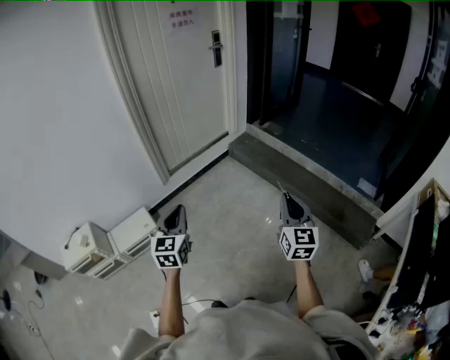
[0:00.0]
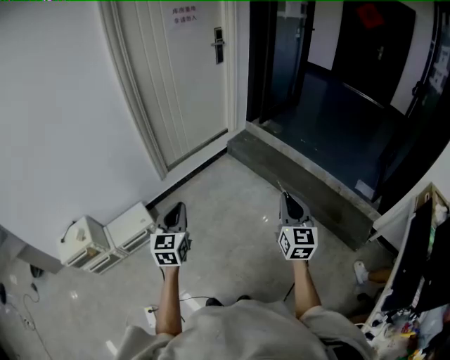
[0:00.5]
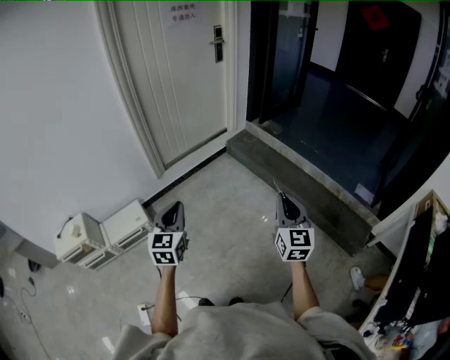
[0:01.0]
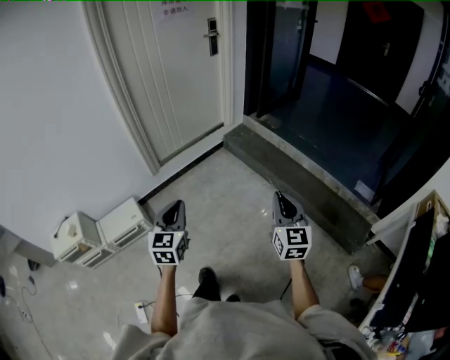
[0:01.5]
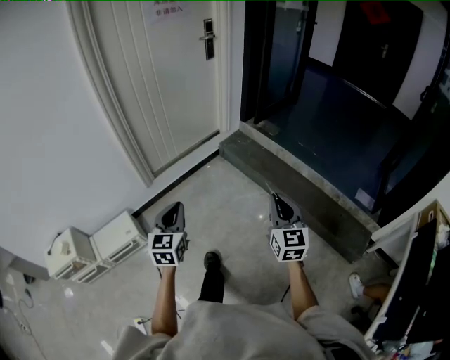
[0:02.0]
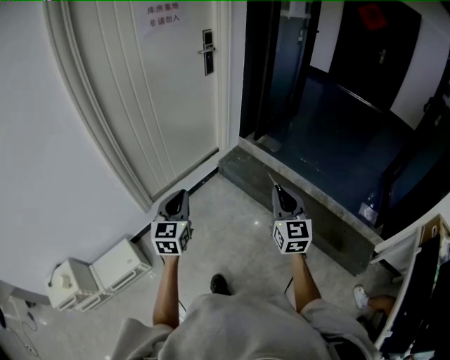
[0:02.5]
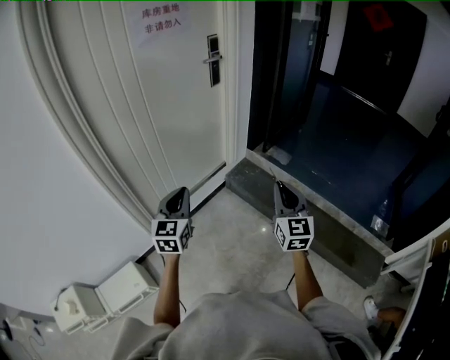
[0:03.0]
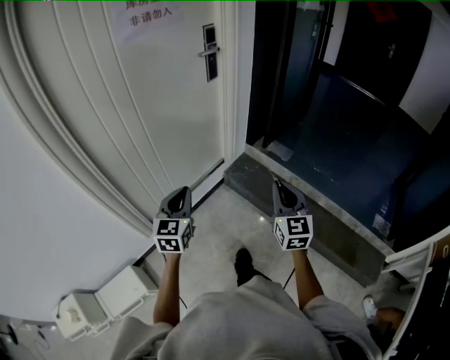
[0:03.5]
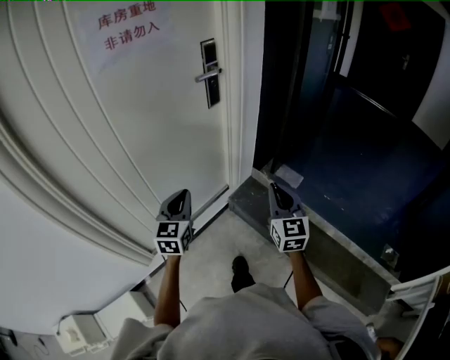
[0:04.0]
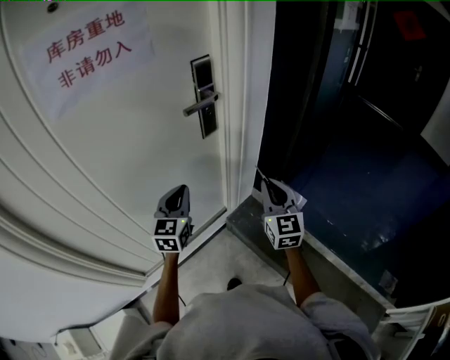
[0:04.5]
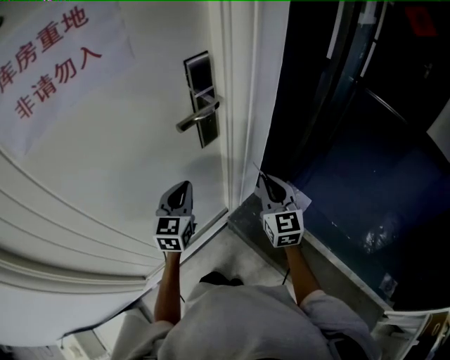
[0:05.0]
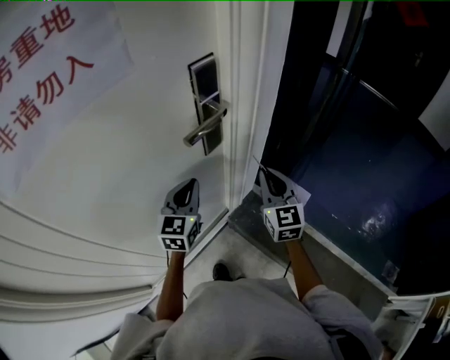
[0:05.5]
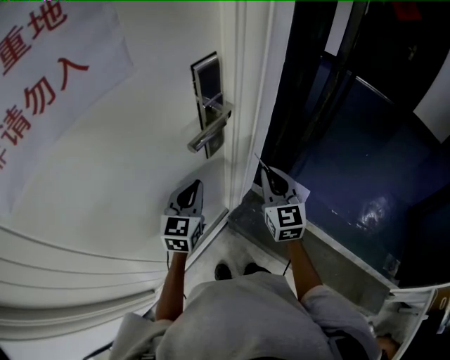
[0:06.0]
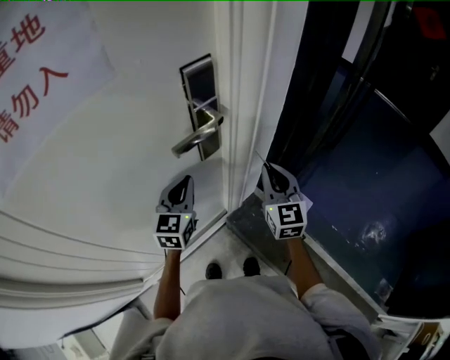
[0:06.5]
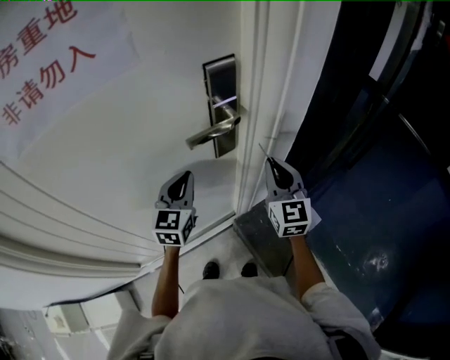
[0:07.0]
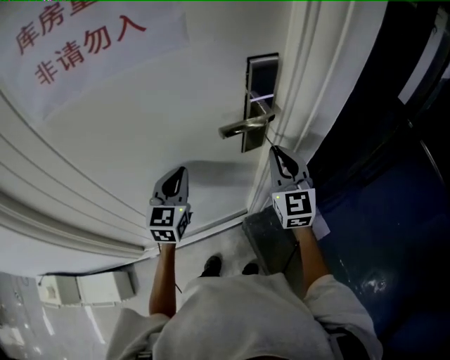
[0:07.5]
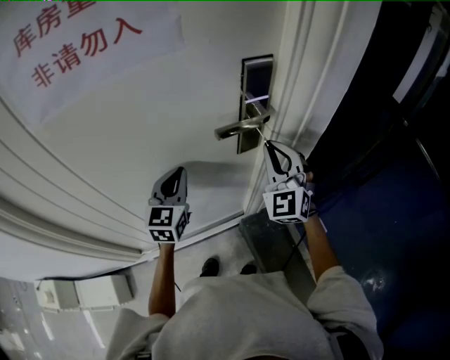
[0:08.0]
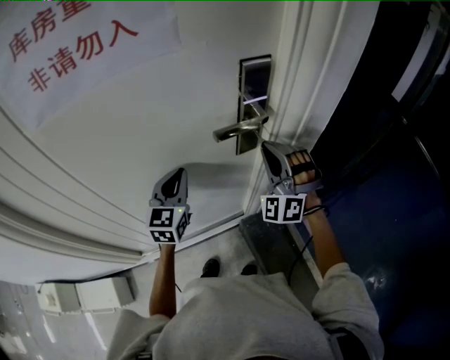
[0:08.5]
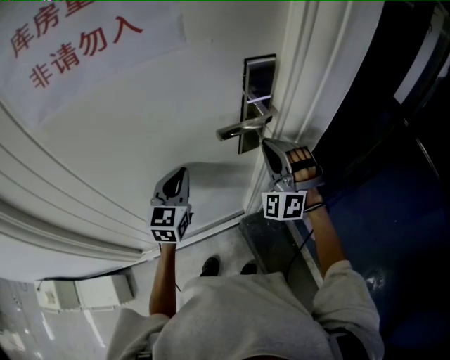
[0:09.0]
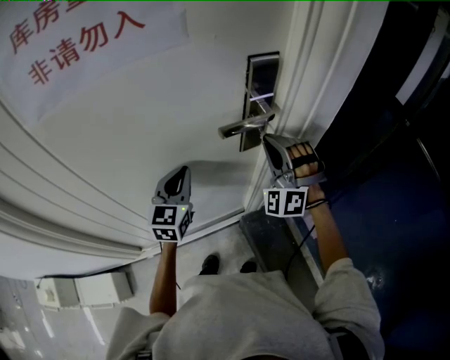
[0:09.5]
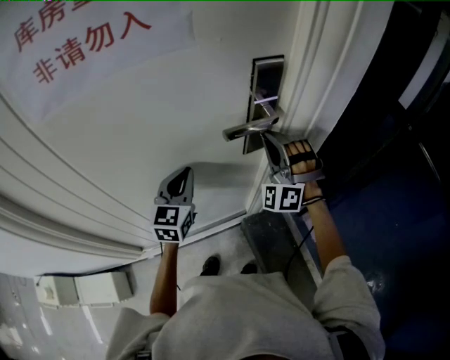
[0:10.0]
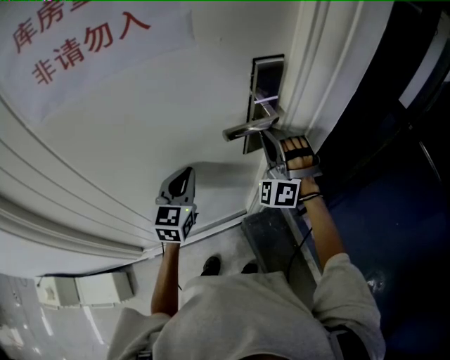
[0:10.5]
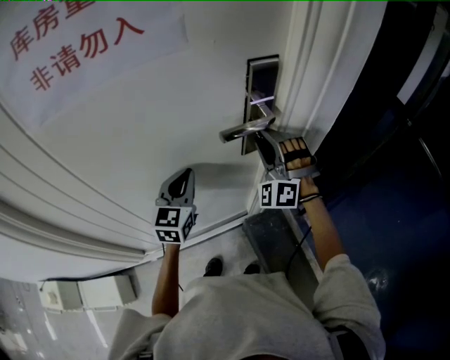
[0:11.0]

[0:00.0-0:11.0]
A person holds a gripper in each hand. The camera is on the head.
0:00.0 to 0:02.0: The left gripper shifts about 15 cm forward and to the right. Meanwhile the right gripper travels forward by roughly 15 cm.
0:02.0 to 0:03.5: The two grippers travel together, forward, approximately 50 cm.
0:03.5 to 0:05.5: The two grippers travel together, forward, approximately 60 cm.
0:05.5 to 0:07.5: The right gripper shifts by about 10 cm, and changes its angle by roughly 30 degrees. The left gripper ends up about 10 cm from where it was, and changes its angle by some 30 degrees.
0:07.5 to 0:09.0: The right gripper rolls counterclockwise, seen from behind, by some 60 degrees.
0:09.0 to 0:11.0: The right gripper opens its fingers.

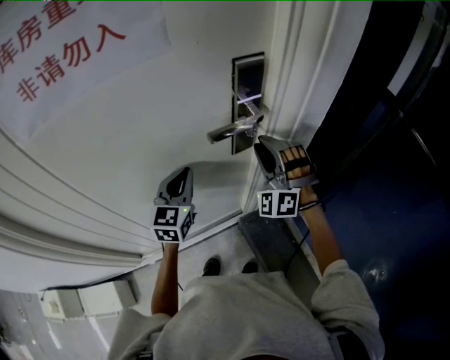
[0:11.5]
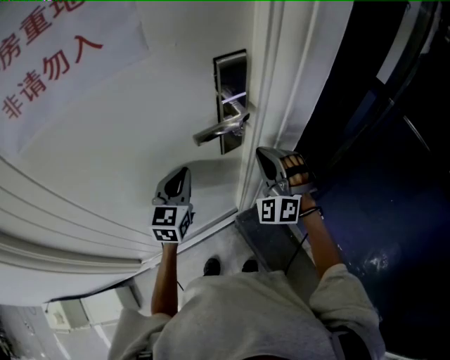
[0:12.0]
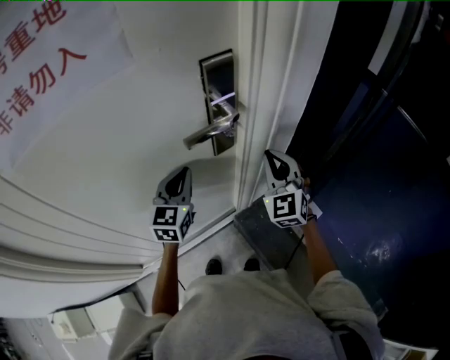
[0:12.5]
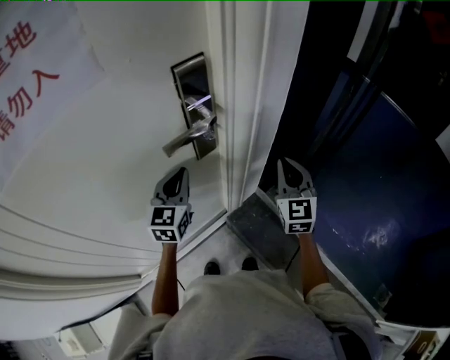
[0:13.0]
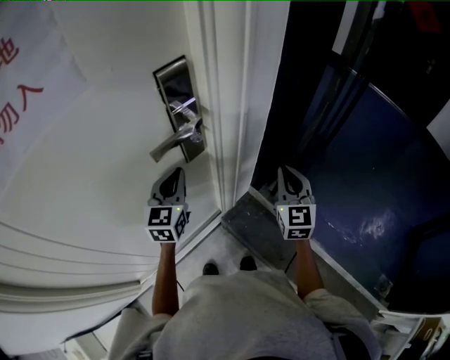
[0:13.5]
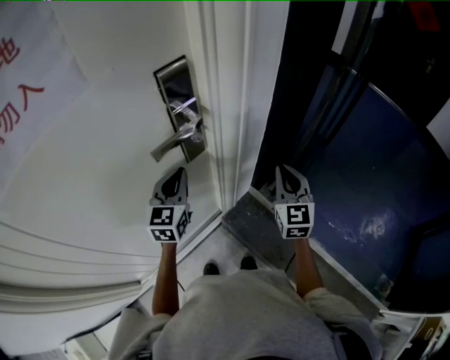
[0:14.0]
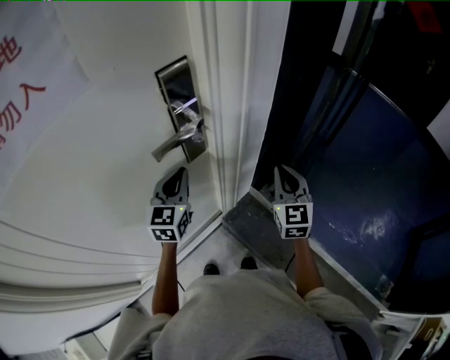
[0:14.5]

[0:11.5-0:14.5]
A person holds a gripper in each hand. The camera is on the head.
0:11.5 to 0:13.0: The right gripper moves to the right, some 15 cm, rotates around the line of its fingers by roughly 60 degrees, clockwise from behind, and closes up; the left gripper moves to the right, about 10 cm.
0:13.0 to 0:14.5: There are only small adjustments of the grippers.

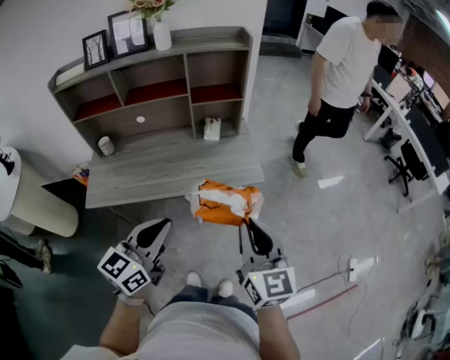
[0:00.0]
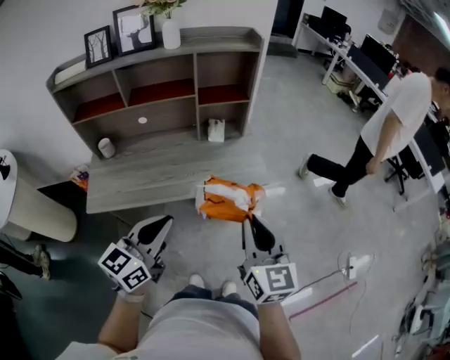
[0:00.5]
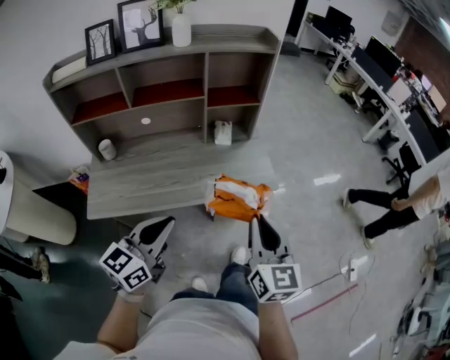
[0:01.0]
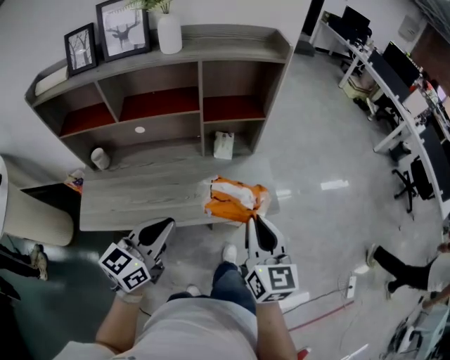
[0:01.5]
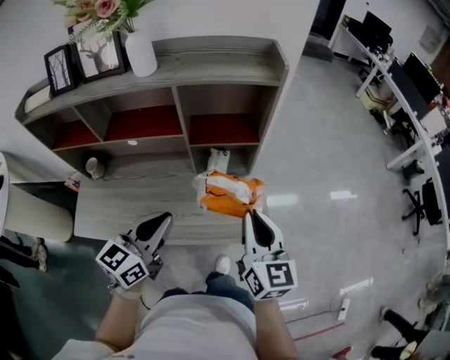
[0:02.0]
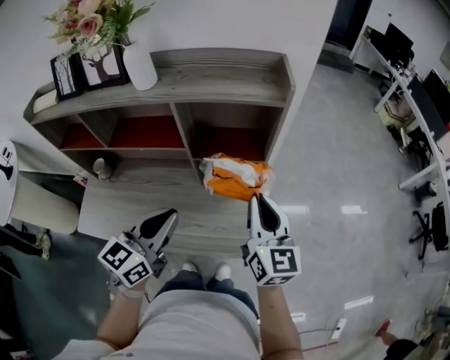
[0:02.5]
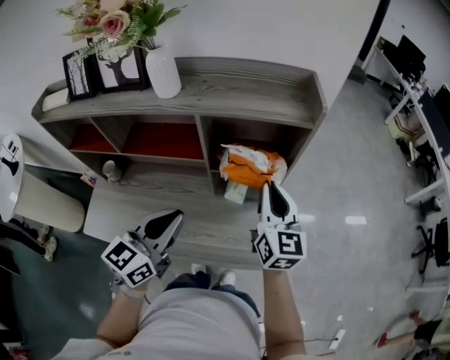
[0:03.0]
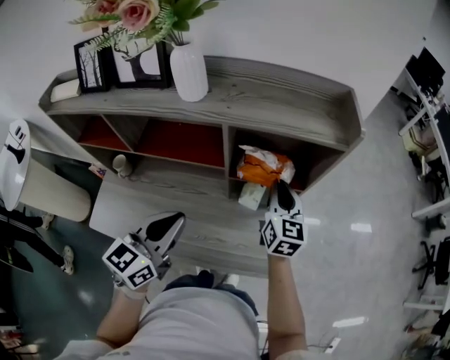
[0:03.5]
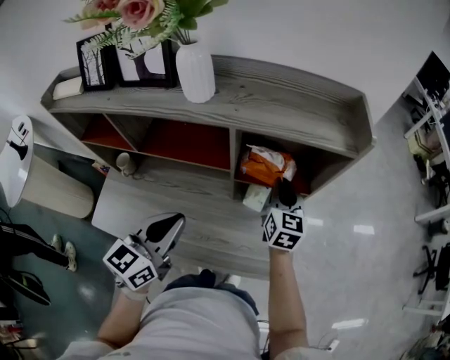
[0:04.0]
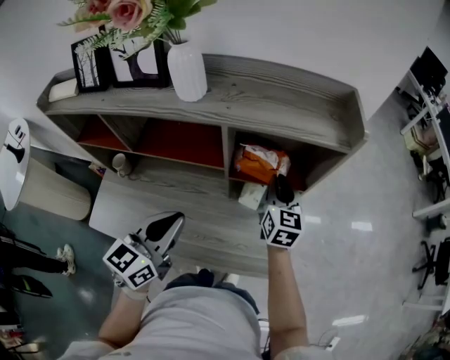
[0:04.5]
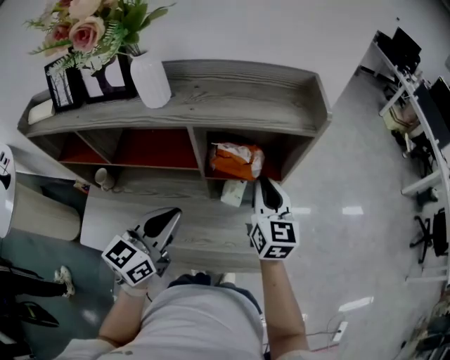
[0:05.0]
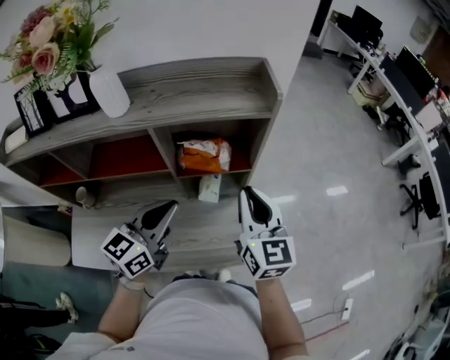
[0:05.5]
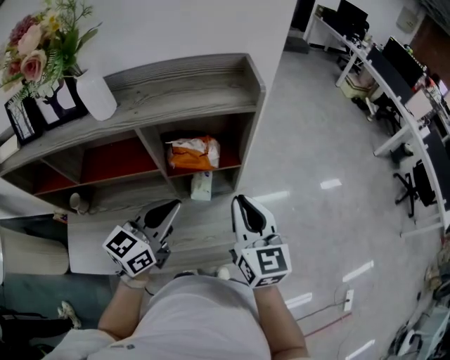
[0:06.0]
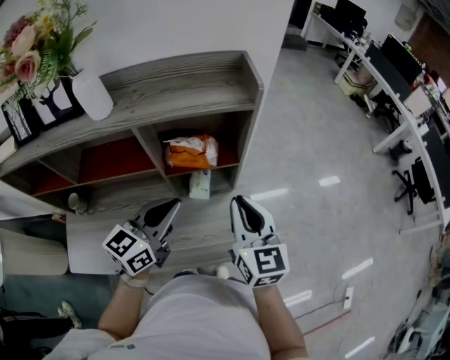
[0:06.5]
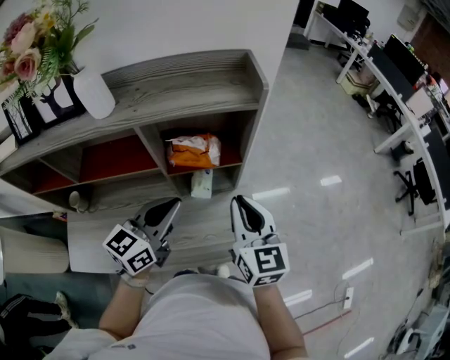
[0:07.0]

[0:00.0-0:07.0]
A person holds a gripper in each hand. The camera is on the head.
0:00.0 to 0:02.0: Both grippers travel together forward, approximately 35 cm.
0:02.0 to 0:03.5: The left gripper heads forward and to the left, covering some 10 cm, while the right gripper shifts approximately 25 cm forward.
0:03.5 to 0:05.0: The grippers make only small movements.
0:05.0 to 0:07.0: The right gripper moves backward and to the right, some 10 cm, while the left gripper is displaced to the right by roughly 5 cm.

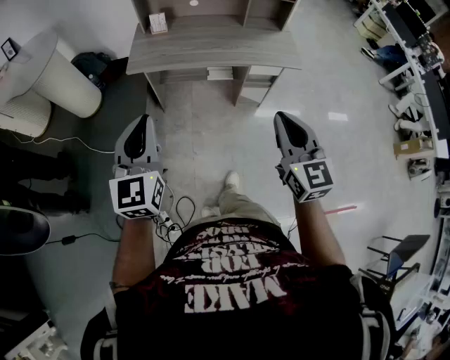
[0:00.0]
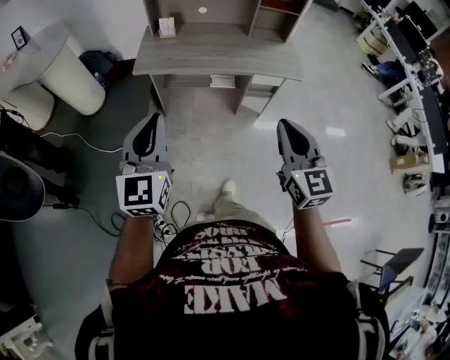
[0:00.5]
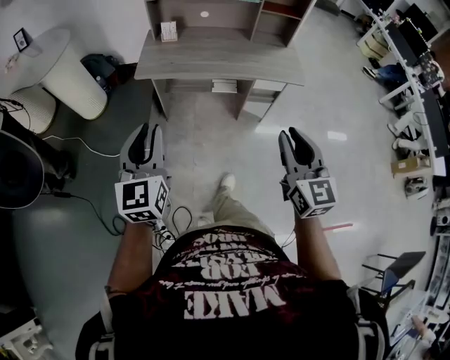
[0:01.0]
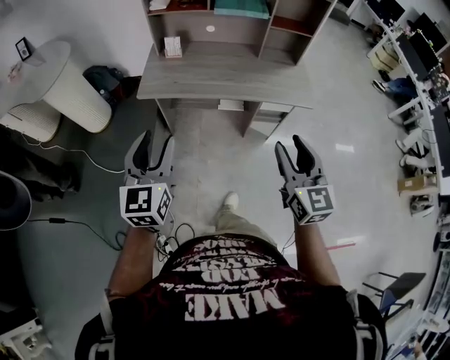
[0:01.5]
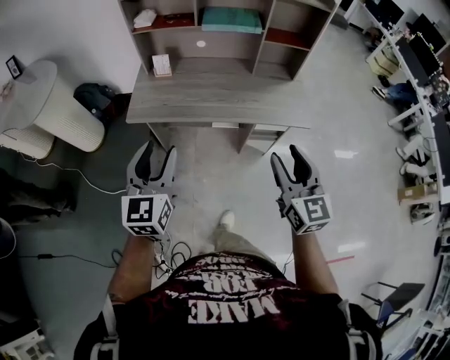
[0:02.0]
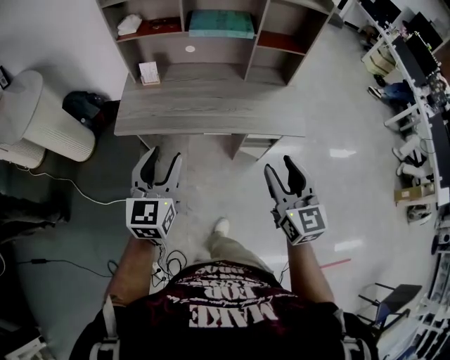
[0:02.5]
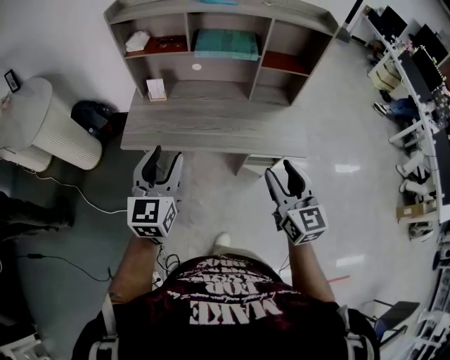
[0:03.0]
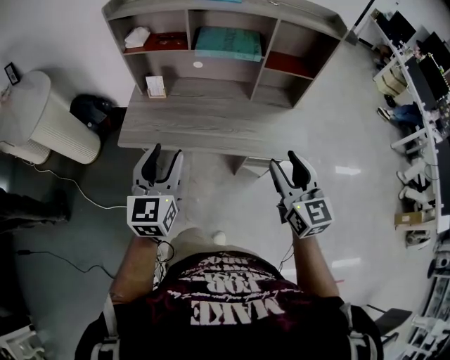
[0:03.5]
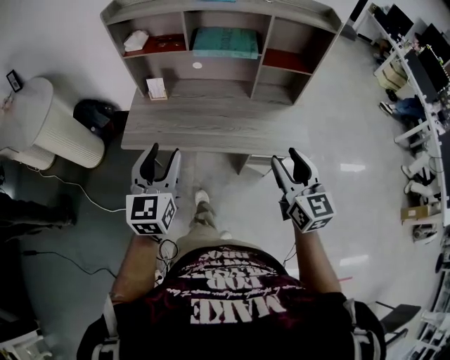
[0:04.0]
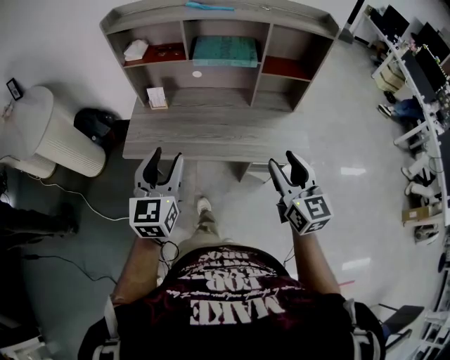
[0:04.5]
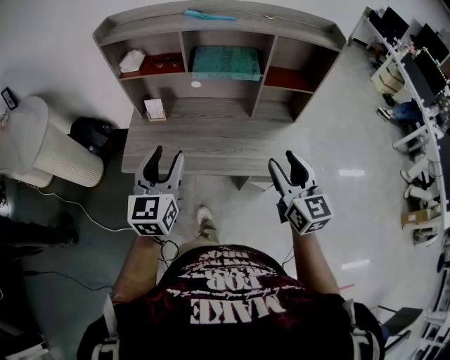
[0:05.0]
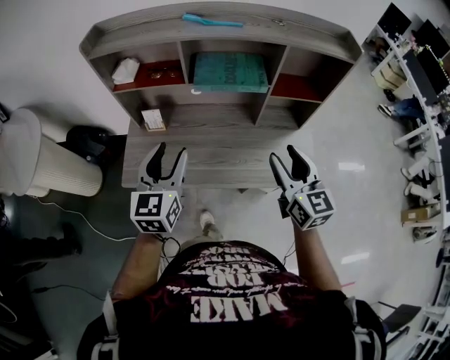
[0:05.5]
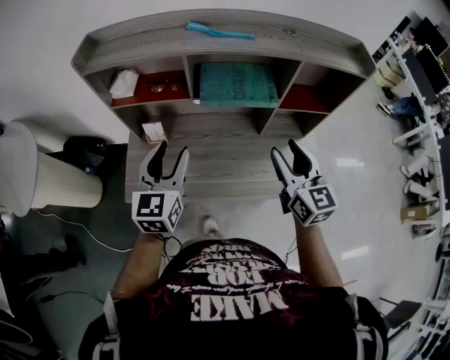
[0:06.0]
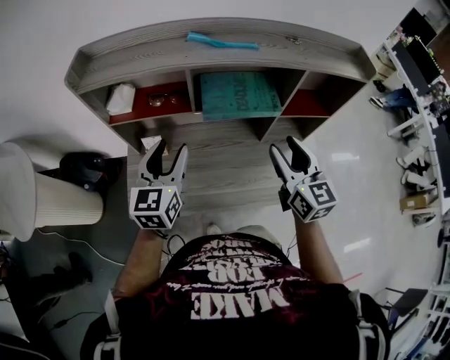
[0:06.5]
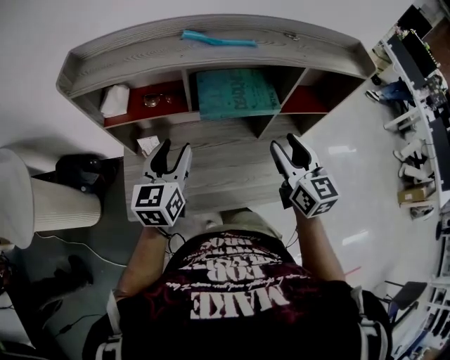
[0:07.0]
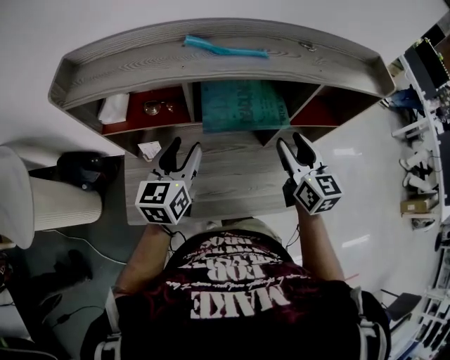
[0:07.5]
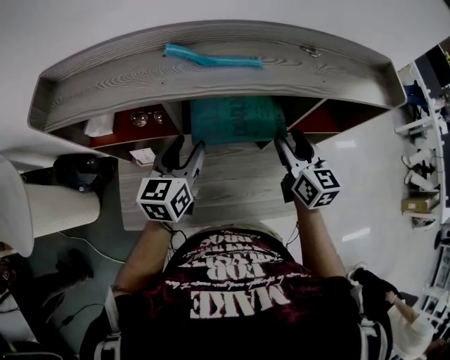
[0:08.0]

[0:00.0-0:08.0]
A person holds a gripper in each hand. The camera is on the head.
0:00.0 to 0:02.0: Both grippers move forward, roughly 20 cm. The right gripper opens. The left gripper opens.
0:02.0 to 0:04.0: Both grippers move forward and to the right, roughly 15 cm.
0:04.0 to 0:06.0: The grippers both shift forward by approximately 25 cm.
0:06.0 to 0:08.0: Both grippers travel together forward, some 20 cm.
